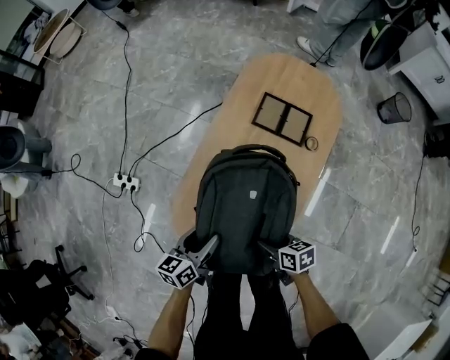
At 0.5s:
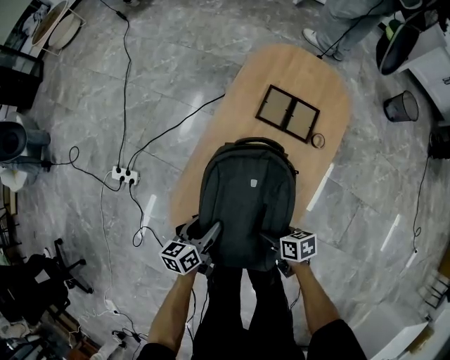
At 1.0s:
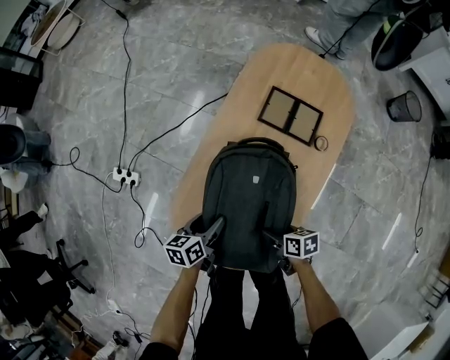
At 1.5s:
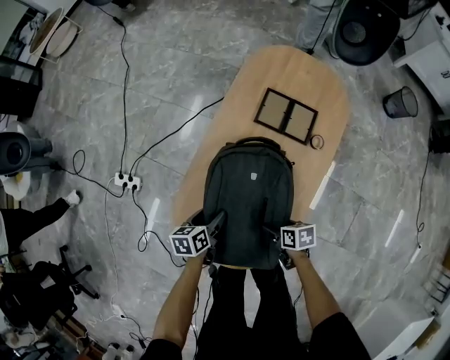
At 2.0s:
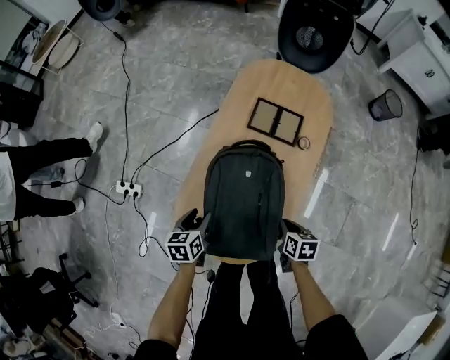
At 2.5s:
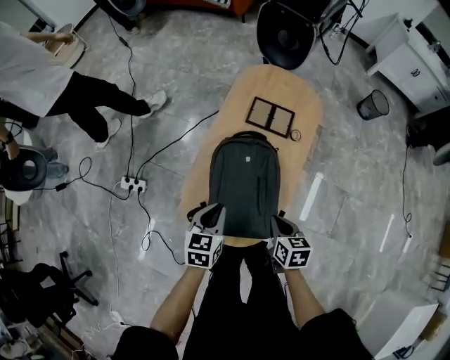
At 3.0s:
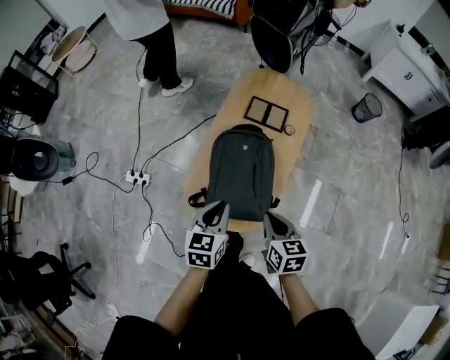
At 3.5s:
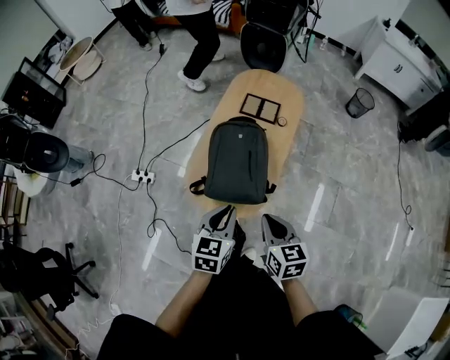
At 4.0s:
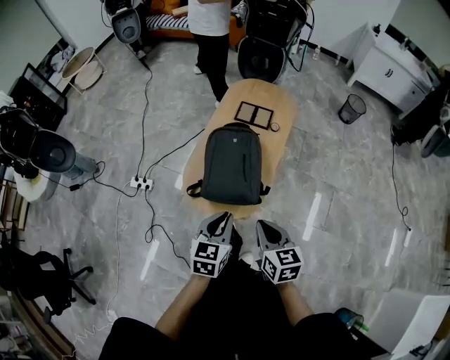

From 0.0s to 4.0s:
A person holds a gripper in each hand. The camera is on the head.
From 0.0s to 2.0s: The left gripper reaches some 10 cm downward, then returns, and changes its angle by some 20 degrees. Meanwhile the right gripper moves to the right, approximately 10 cm, rotates about 30 degrees, and closes its fingers.
From 2.0s to 4.0s: The right gripper heads upward and backward, covering approximately 40 cm, and rotates some 30 degrees. Meanwhile the left gripper is displaced upward, backward and to the right by roughly 40 cm, swivels approximately 30 degrees, and closes.

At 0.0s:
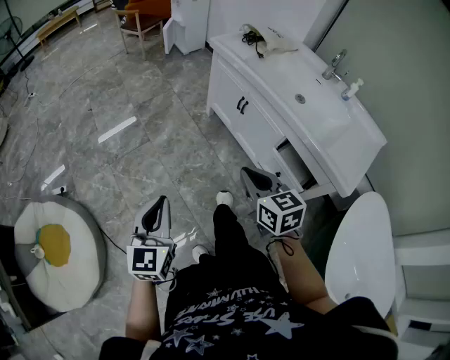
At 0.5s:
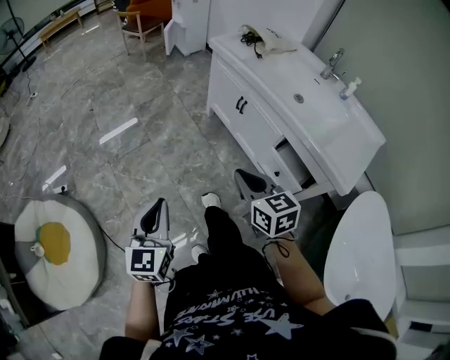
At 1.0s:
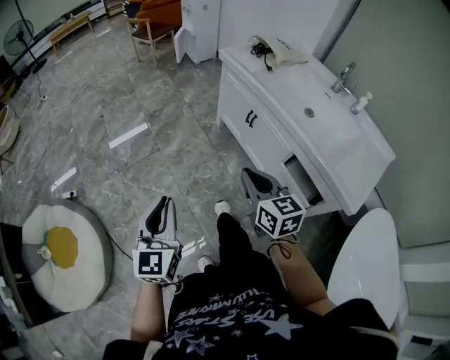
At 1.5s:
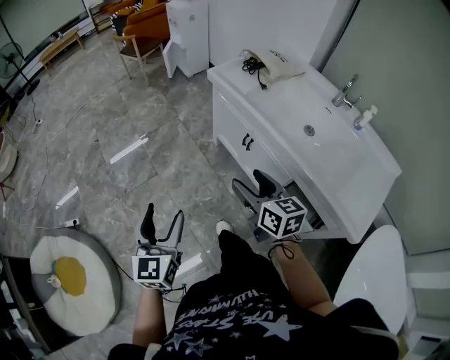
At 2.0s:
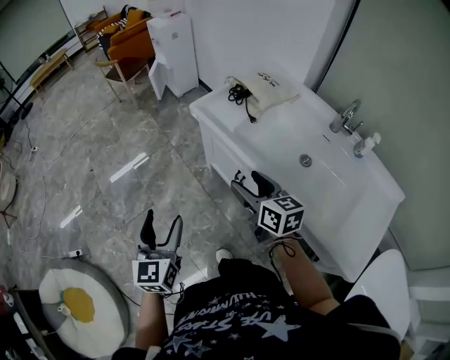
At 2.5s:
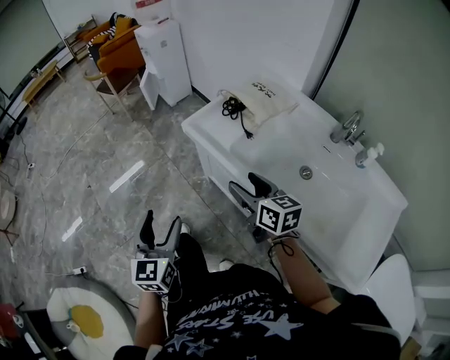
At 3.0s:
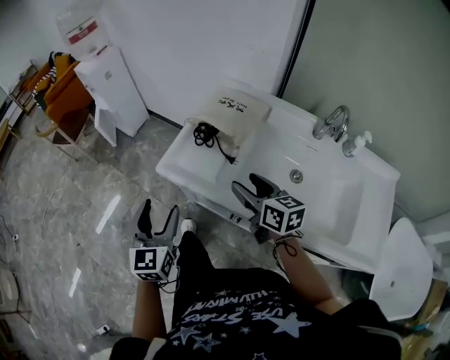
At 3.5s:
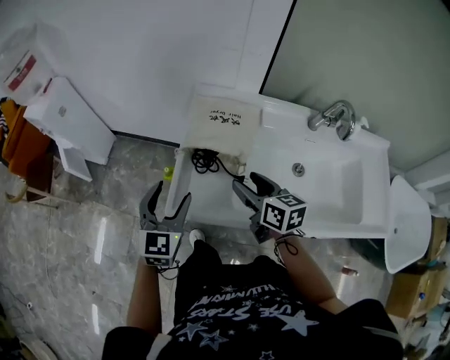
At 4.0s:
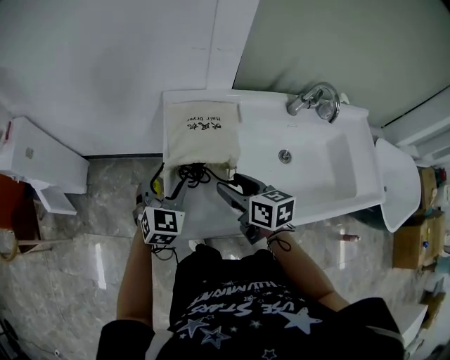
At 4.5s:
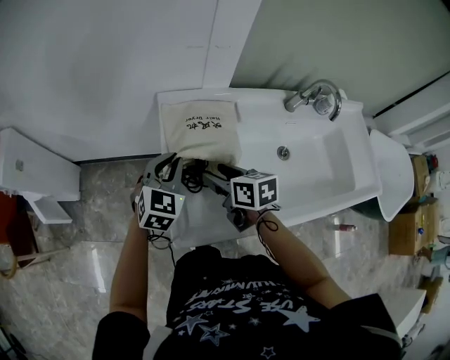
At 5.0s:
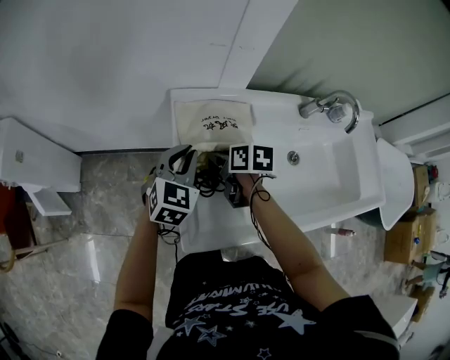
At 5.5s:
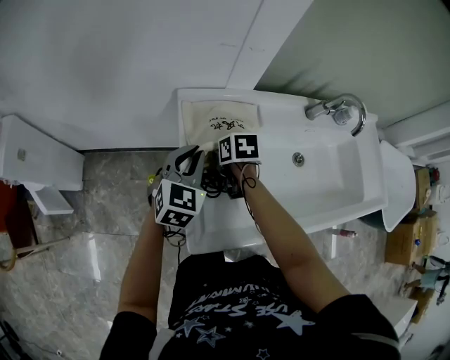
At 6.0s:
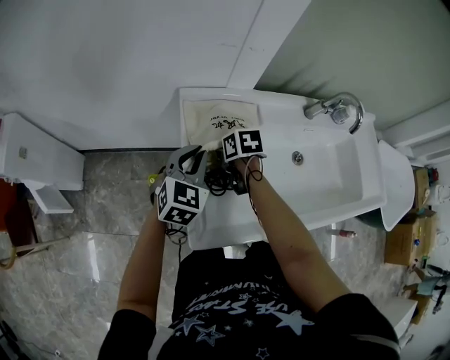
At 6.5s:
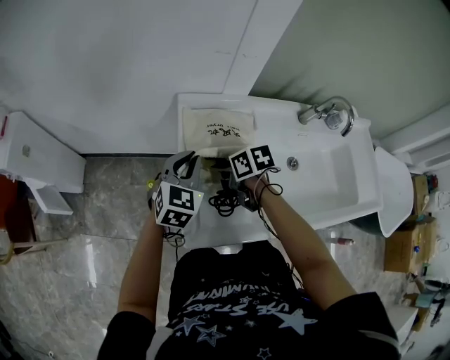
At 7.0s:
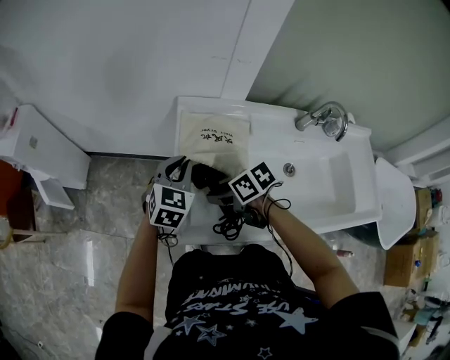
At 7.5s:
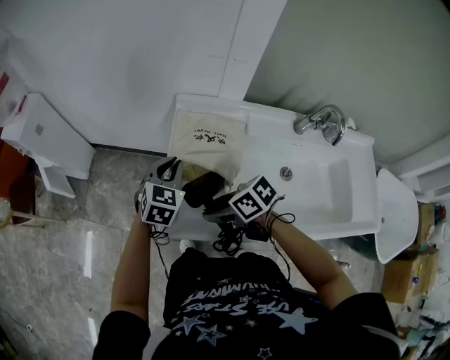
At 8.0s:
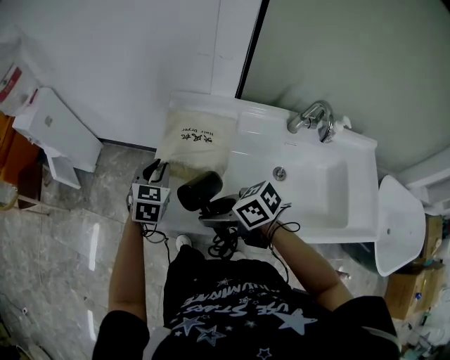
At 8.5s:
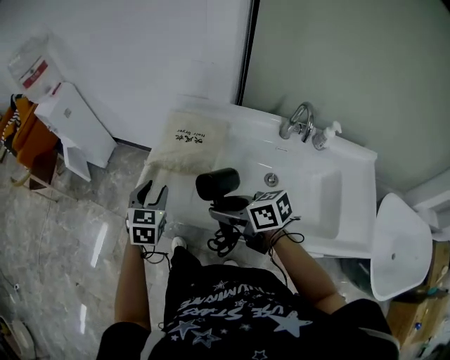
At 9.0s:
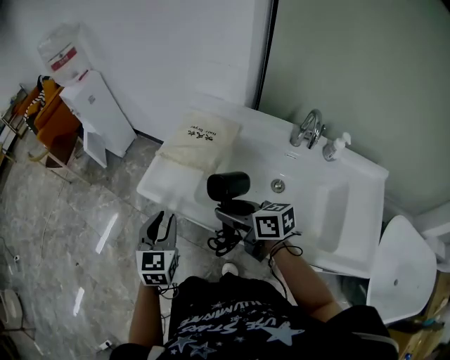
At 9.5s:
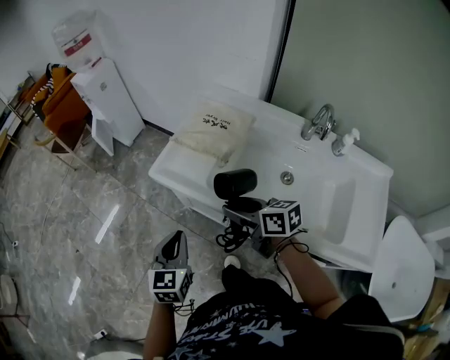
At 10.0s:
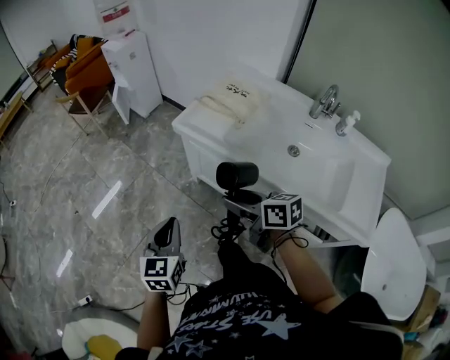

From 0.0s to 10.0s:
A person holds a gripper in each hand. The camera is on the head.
From 0.0s to 2.0s: The right gripper shifts some 35 cm forward and to the right, and opens its fingers, while the left gripper heads forward, covering some 35 cm, and opens.
From 2.0s to 4.0s: The left gripper ends up roughly 60 cm from where it was, and turns by approximately 70 degrees. The right gripper ends up roughly 35 cm from where it was, and turns by some 50 degrees.
From 4.0s to 6.0s: The left gripper is displaced forward by about 10 cm, and closes its fingers. The right gripper heads forward and downward, covering roughly 20 cm, and tilts its fingers roughly 30 degrees downward.
From 6.0s to 8.0s: The left gripper ends up approximately 10 cm from where it was, and changes its angle by approximately 30 degrees; the right gripper changes place by roughly 30 cm, and changes its angle by roughly 60 degrees.
From 8.0s to 10.0s: The left gripper shifts approximately 50 cm backward and to the left, and rotates some 40 degrees. Meanwhile the right gripper shifts some 30 cm backward.

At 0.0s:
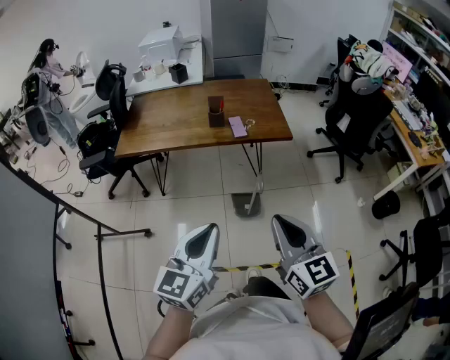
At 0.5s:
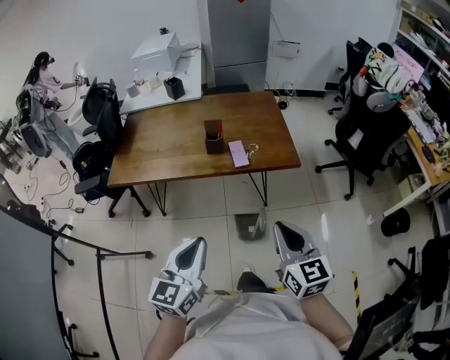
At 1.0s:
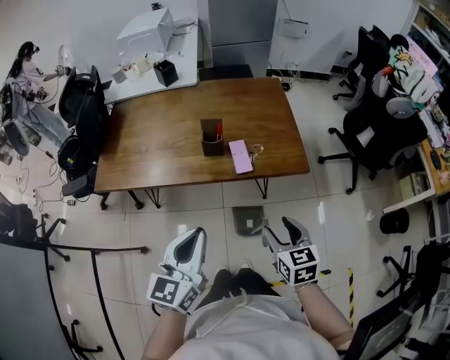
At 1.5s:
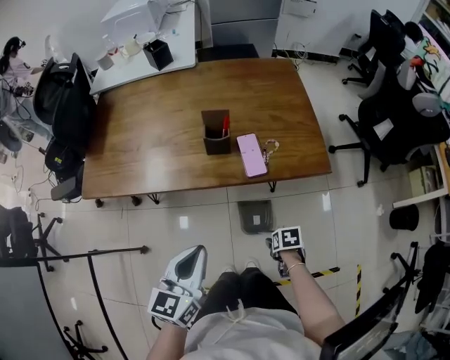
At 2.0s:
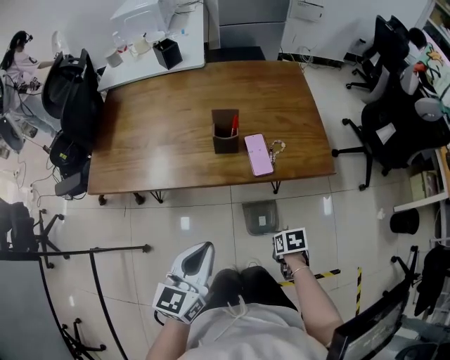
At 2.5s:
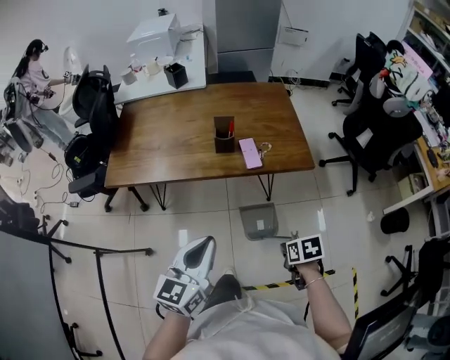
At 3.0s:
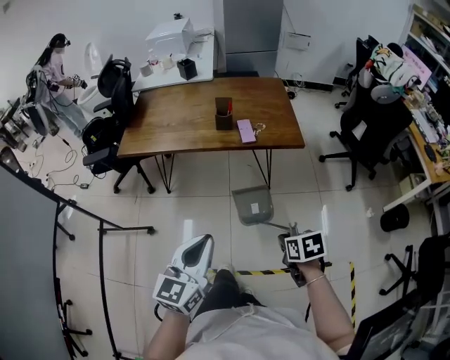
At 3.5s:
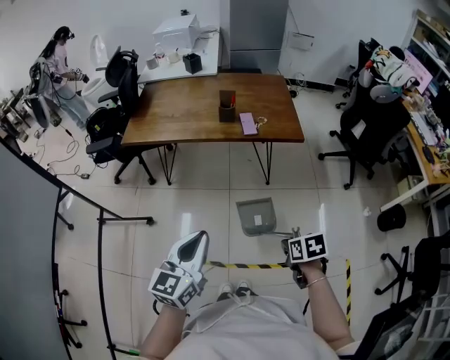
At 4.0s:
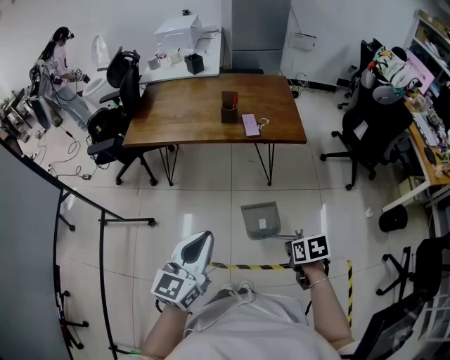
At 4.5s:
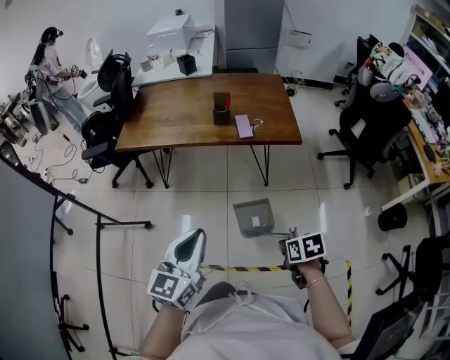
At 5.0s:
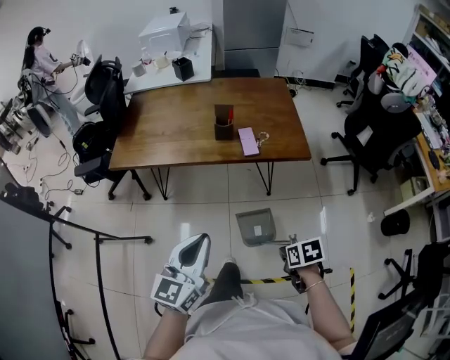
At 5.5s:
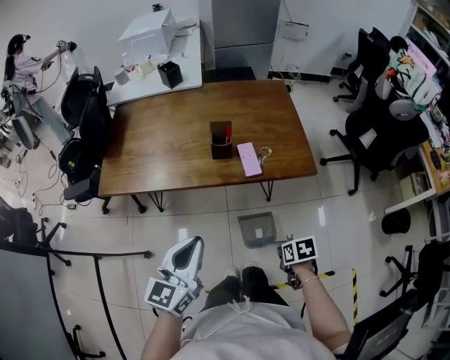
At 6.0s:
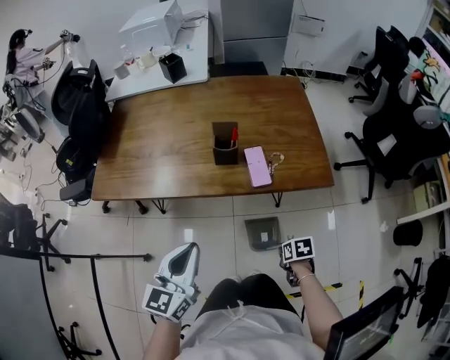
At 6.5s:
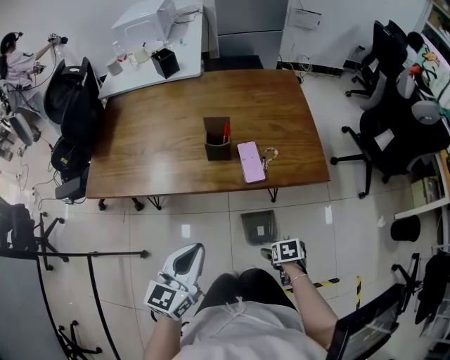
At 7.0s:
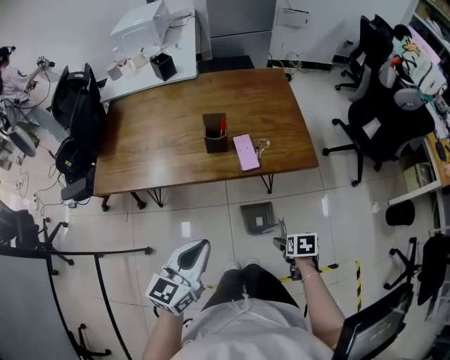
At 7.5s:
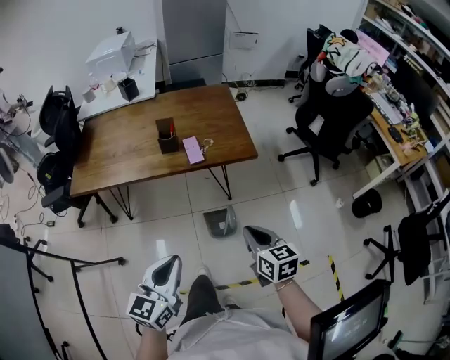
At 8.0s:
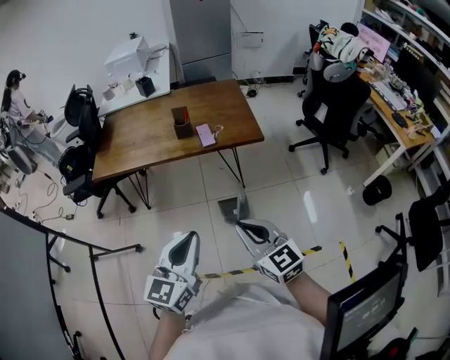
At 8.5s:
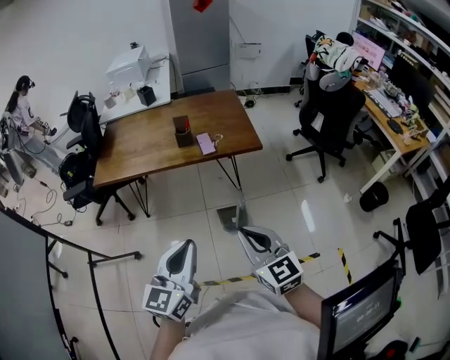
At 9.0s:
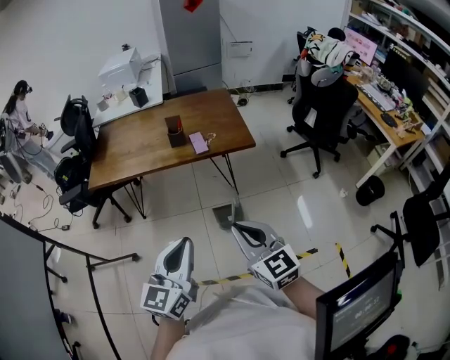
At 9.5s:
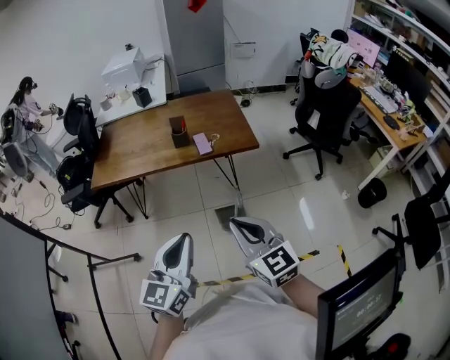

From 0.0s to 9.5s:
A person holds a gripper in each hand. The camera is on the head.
From 0.0s to 2.0s: The left gripper shifts by some 35 cm. The right gripper goes some 40 cm downward, angles its fingers downward, by about 70 degrees, and opens, then closes again.
From 2.0s to 4.0s: The right gripper changes place by about 35 cm; the left gripper ends up approximately 35 cm from where it was.
From 4.0s to 5.5s: The grippers both shift forward by roughly 25 cm.
From 5.5s to 7.5s: The right gripper goes roughly 15 cm upward, tilts its fingers approximately 40 degrees upward, and opens, then closes again, while the left gripper goes downward and returns, about 10 cm each way.
From 7.5s to 9.5s: The left gripper heads upward and backward, covering approximately 15 cm; the right gripper shifts about 20 cm upward, backward and to the left, and rotates some 30 degrees.

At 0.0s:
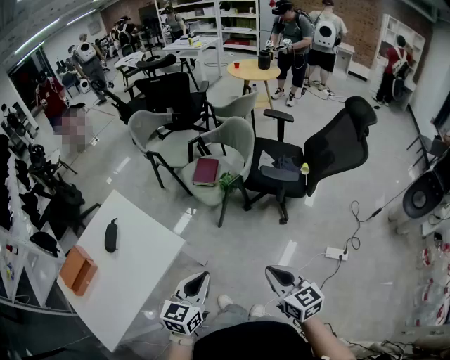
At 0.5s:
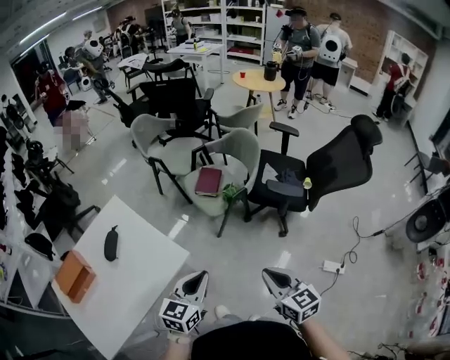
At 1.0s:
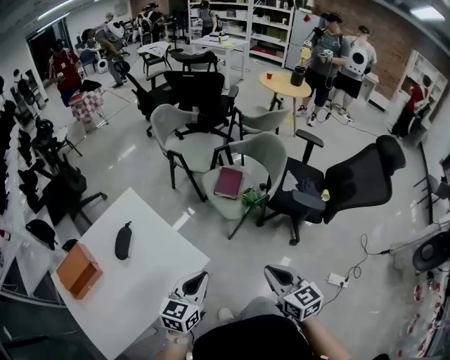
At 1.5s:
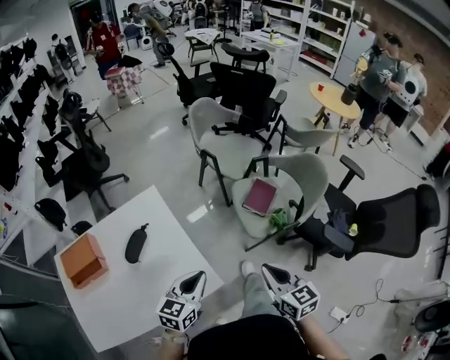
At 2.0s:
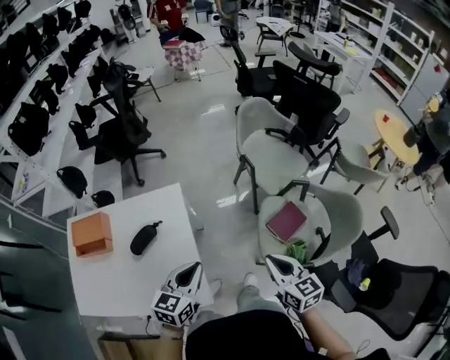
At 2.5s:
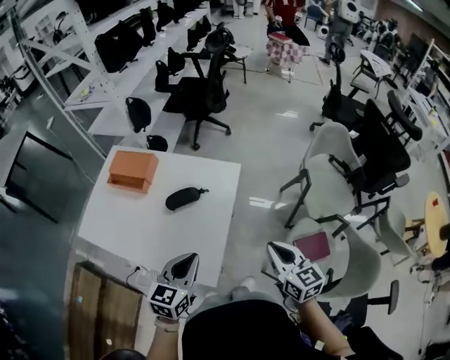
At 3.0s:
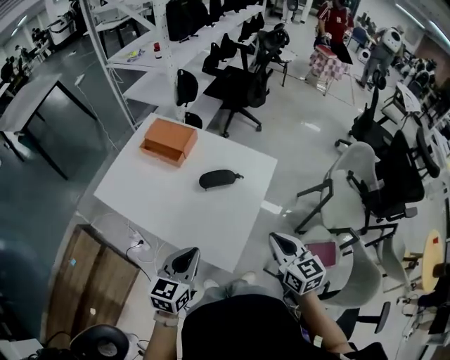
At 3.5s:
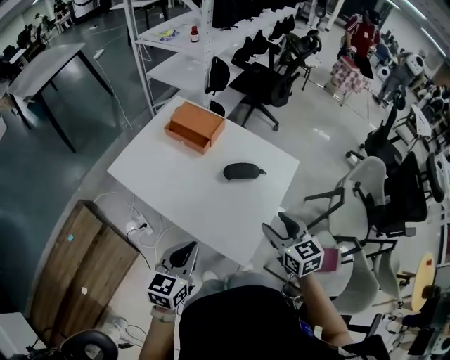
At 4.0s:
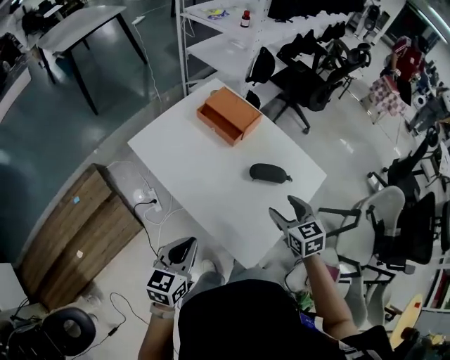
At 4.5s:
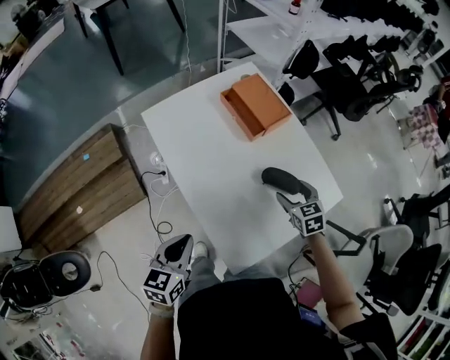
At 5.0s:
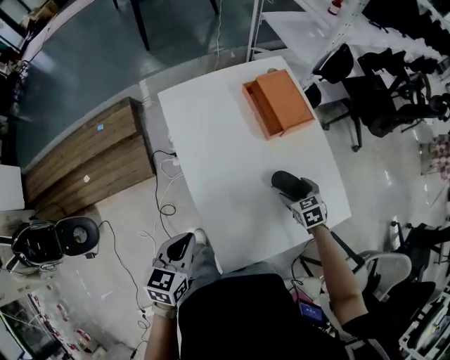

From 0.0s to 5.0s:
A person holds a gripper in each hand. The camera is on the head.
From 0.0s to 2.5s: The left gripper shifts by about 40 cm, and changes its angle by roughly 70 degrees. Meanwhile the right gripper moves some 60 cm, and rotates some 70 degrees.
From 2.5s to 5.0s: The right gripper ends up approximately 50 cm from where it was, points its fingers approximately 40 degrees further downward, and opens, while the left gripper moves some 25 cm, and turns by approximately 60 degrees.
